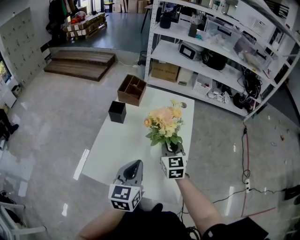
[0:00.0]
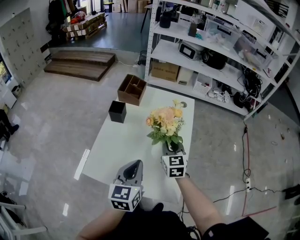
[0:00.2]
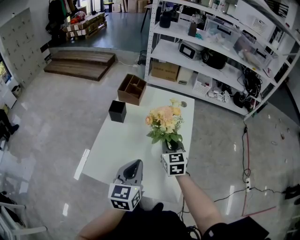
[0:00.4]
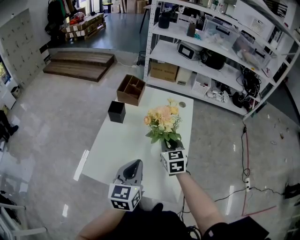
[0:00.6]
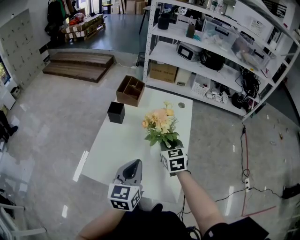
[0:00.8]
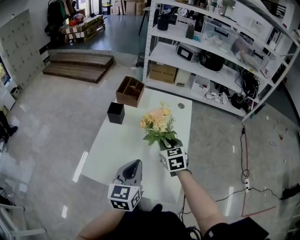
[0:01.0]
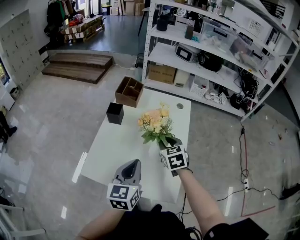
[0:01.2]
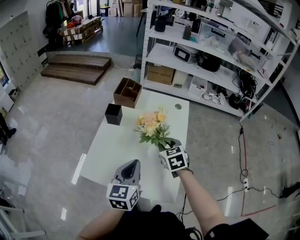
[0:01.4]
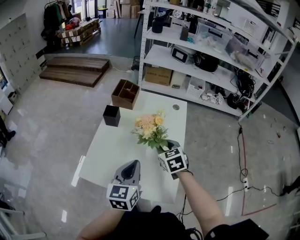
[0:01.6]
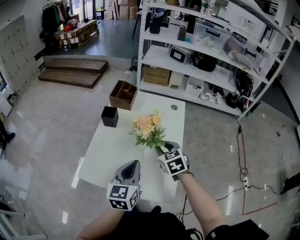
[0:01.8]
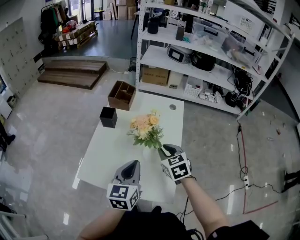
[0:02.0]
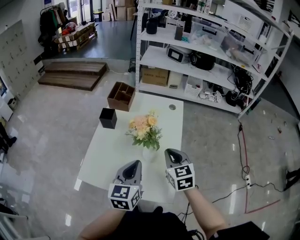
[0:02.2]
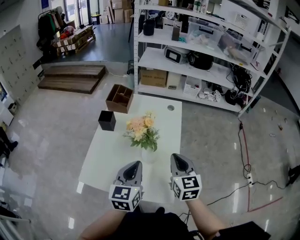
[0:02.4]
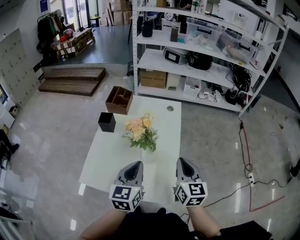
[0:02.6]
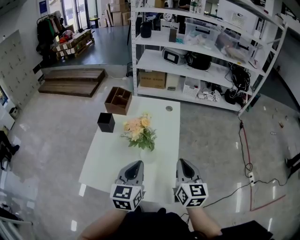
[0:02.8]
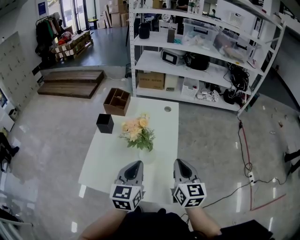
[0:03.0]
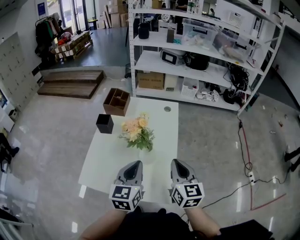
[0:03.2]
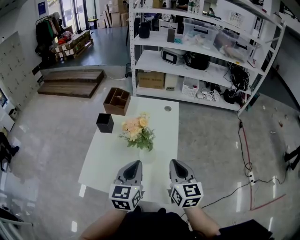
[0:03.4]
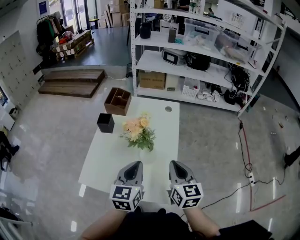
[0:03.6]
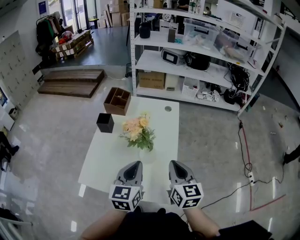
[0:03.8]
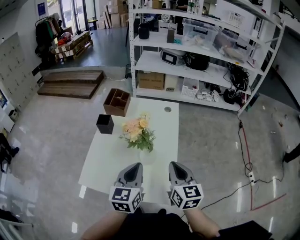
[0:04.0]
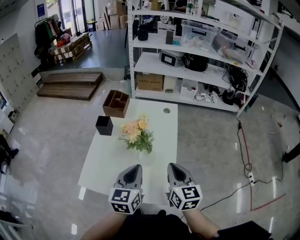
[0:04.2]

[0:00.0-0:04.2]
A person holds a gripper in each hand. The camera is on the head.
0:00.0 to 0:01.4: The right gripper changes its angle by approximately 20 degrees.
0:01.4 to 0:02.8: The right gripper heads to the right, backward and upward, covering some 20 cm, swivels roughly 40 degrees, and closes its fingers. The left gripper shifts about 5 cm to the right.
0:02.8 to 0:04.2: The grippers make only small movements.

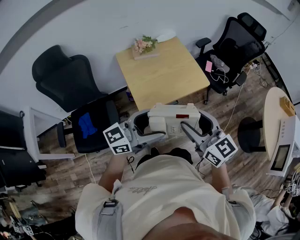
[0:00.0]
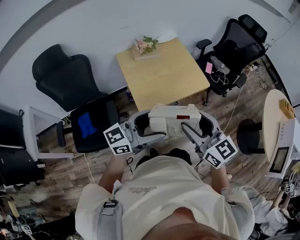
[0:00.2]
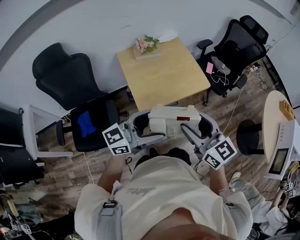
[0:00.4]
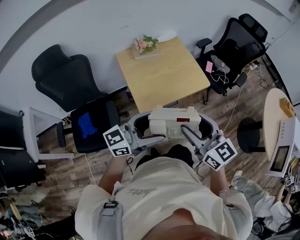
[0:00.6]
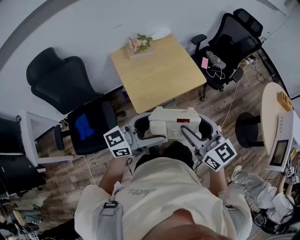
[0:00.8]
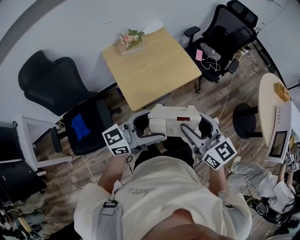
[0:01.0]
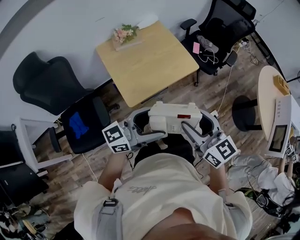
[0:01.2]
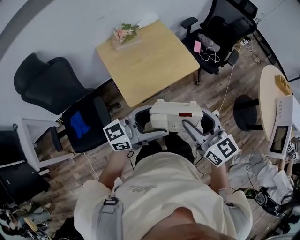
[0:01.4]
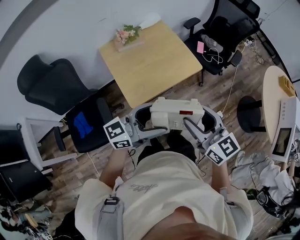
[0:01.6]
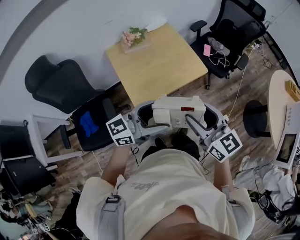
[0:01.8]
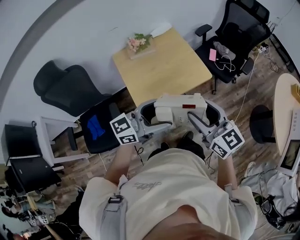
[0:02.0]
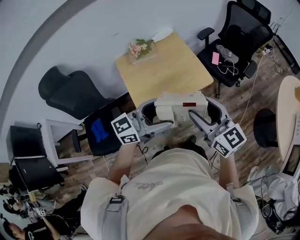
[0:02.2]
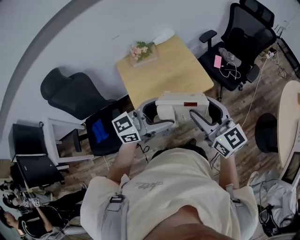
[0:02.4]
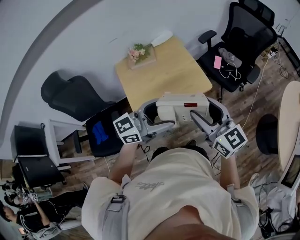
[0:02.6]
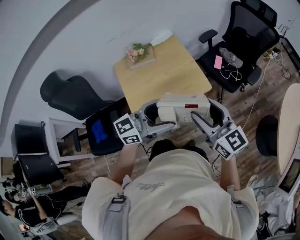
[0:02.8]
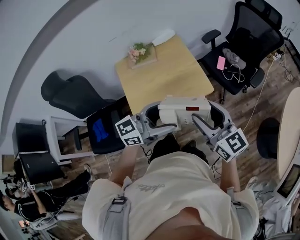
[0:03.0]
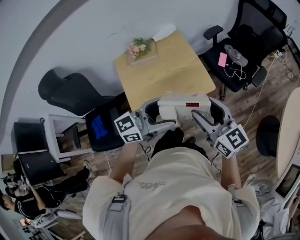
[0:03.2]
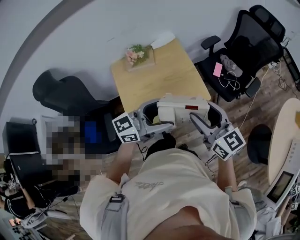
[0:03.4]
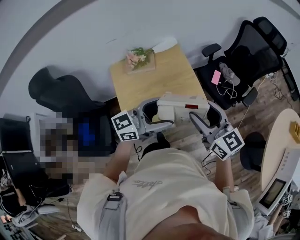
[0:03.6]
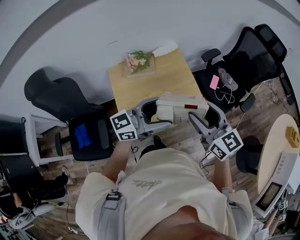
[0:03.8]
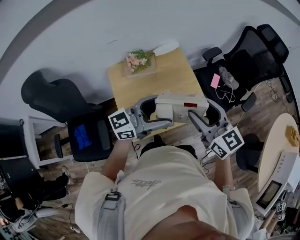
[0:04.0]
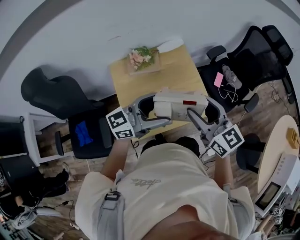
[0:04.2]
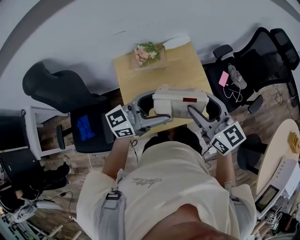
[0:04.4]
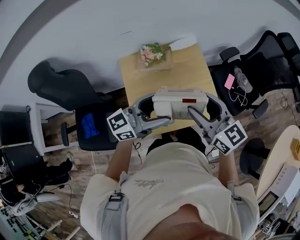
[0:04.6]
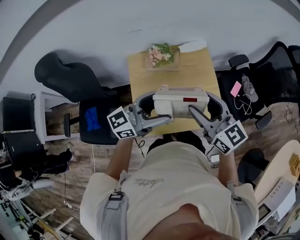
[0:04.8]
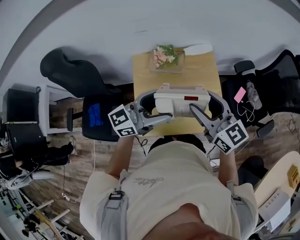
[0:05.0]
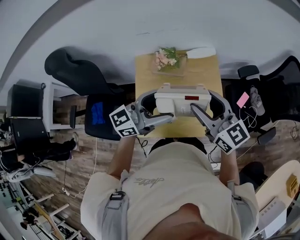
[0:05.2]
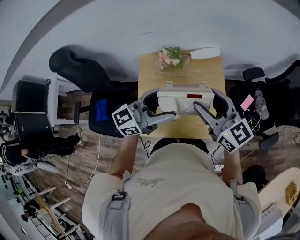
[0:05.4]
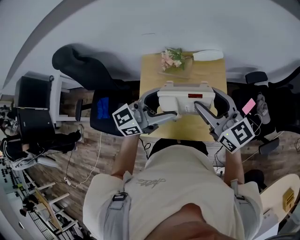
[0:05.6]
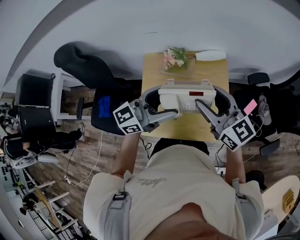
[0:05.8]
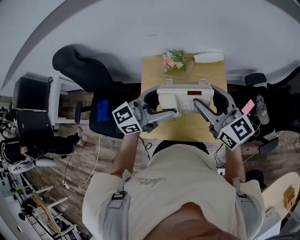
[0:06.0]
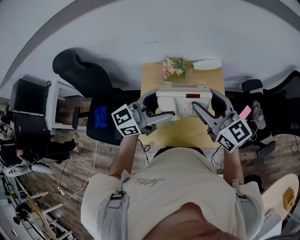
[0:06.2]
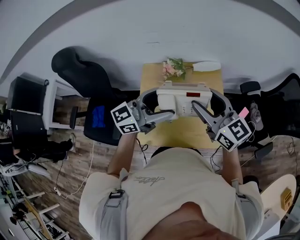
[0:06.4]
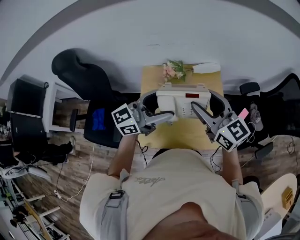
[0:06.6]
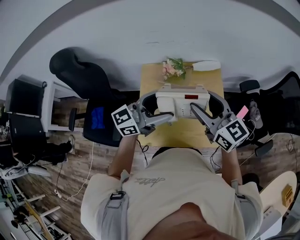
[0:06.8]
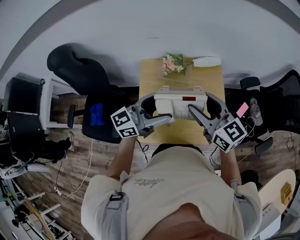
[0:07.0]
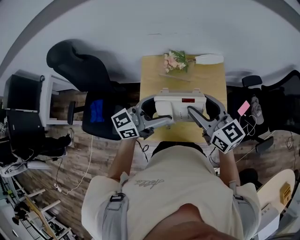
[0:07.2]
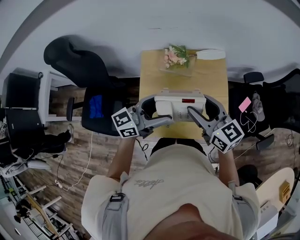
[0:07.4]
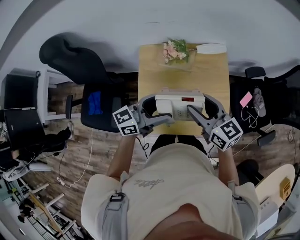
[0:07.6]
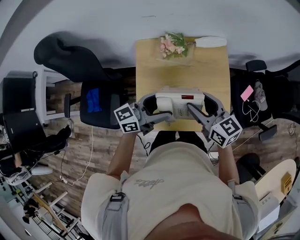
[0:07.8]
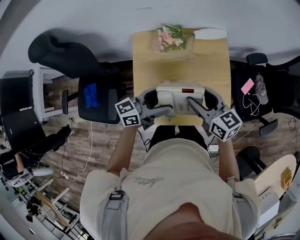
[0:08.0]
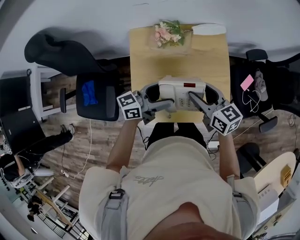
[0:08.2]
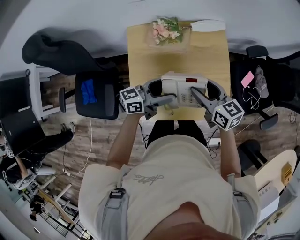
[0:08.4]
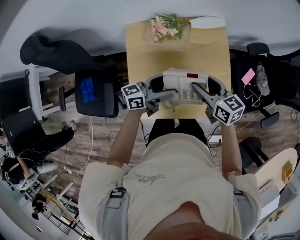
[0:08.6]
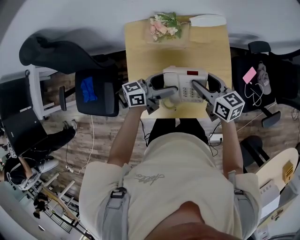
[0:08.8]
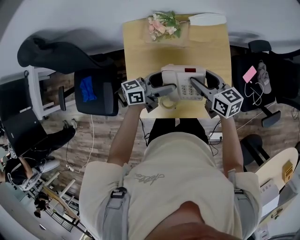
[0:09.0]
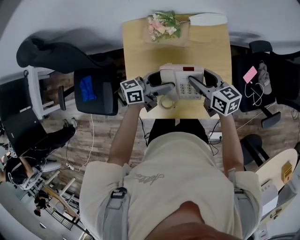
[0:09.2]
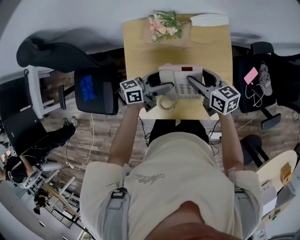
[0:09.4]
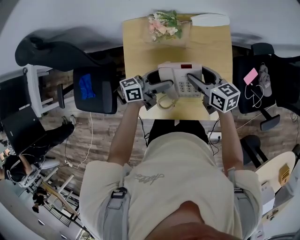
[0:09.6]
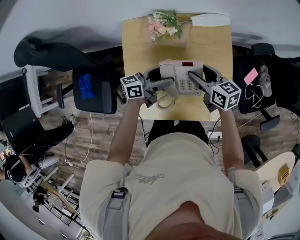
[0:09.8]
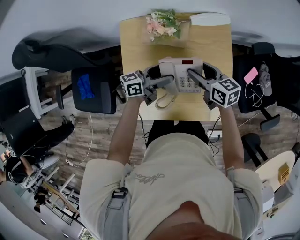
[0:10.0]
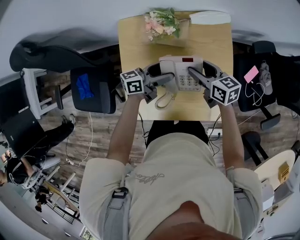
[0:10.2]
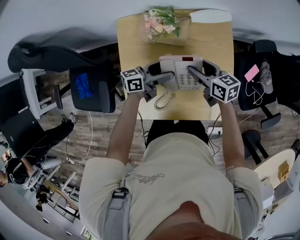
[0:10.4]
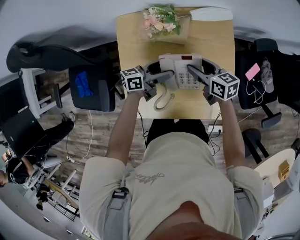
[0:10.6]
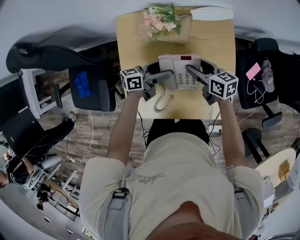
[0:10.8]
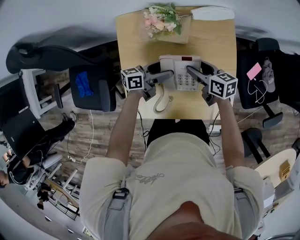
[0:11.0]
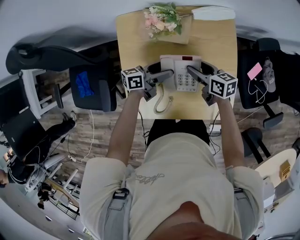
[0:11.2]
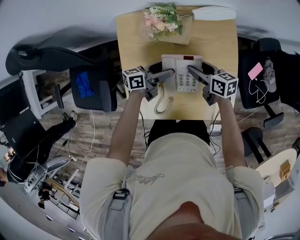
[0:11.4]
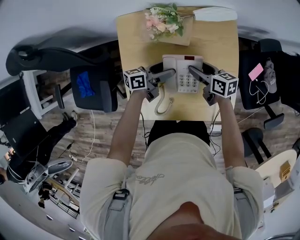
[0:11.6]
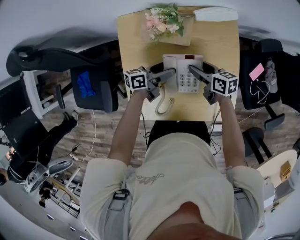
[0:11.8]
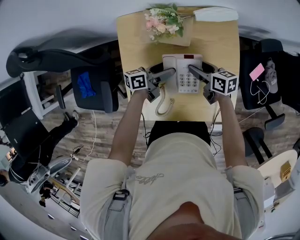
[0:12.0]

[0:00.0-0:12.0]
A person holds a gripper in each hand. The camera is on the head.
0:00.0 to 0:01.6: The left gripper ends up roughly 5 cm from where it was. The right gripper goes approximately 5 cm to the right.
0:01.6 to 0:03.0: Both grippers move forward and to the right, approximately 20 cm.
0:03.0 to 0:04.4: The two grippers go about 25 cm to the left and forward.
0:04.4 to 0:06.0: Both grippers move forward, about 10 cm. The right gripper changes its angle by approximately 20 degrees, while the left gripper swivels some 20 degrees.
0:06.0 to 0:07.6: Both grippers travel together downward and to the left, approximately 10 cm.
0:07.6 to 0:09.0: Both grippers move downward and forward, roughly 15 cm.
0:09.0 to 0:10.4: Both grippers move downward and forward, approximately 10 cm.
0:10.4 to 0:12.0: Both grippers move downward, some 5 cm.

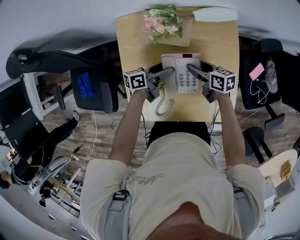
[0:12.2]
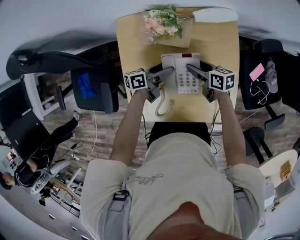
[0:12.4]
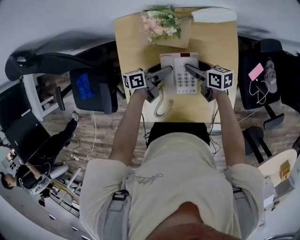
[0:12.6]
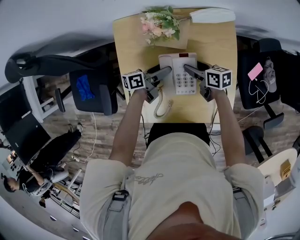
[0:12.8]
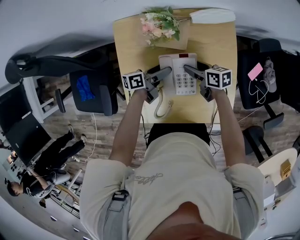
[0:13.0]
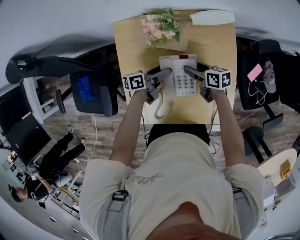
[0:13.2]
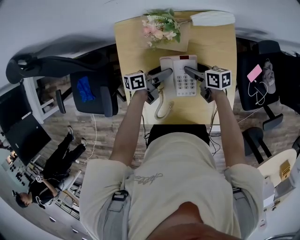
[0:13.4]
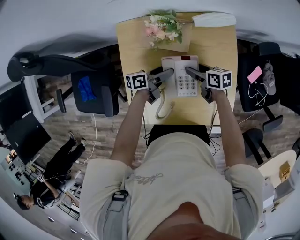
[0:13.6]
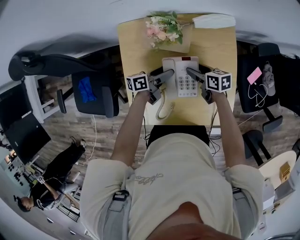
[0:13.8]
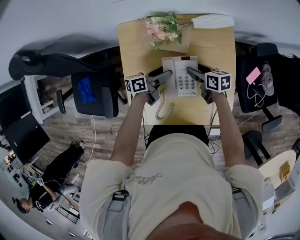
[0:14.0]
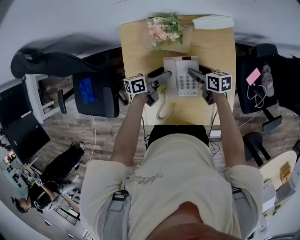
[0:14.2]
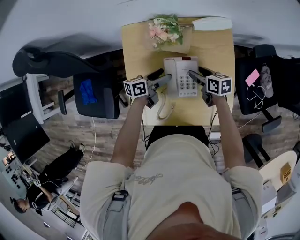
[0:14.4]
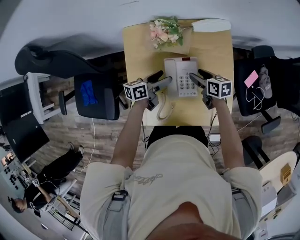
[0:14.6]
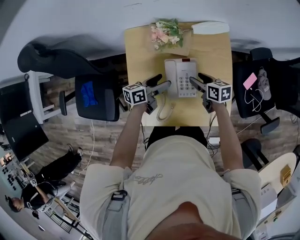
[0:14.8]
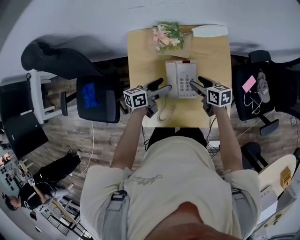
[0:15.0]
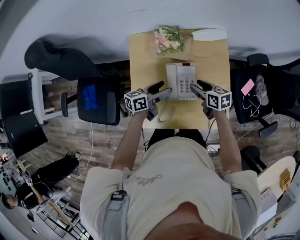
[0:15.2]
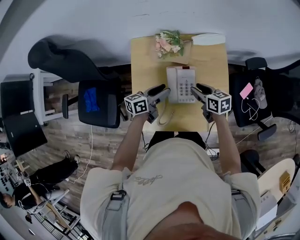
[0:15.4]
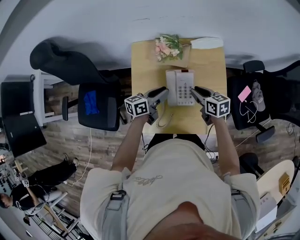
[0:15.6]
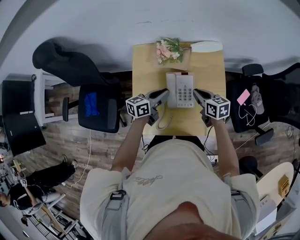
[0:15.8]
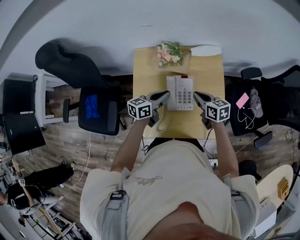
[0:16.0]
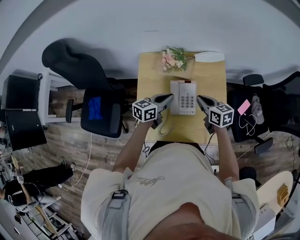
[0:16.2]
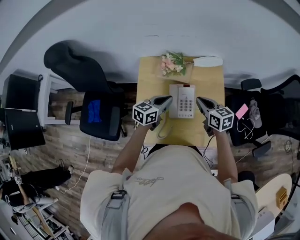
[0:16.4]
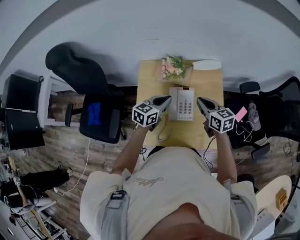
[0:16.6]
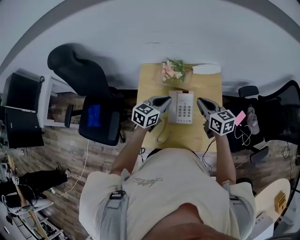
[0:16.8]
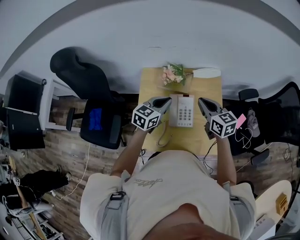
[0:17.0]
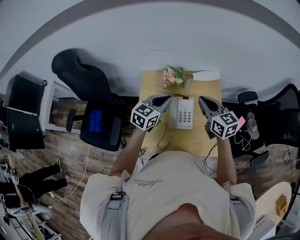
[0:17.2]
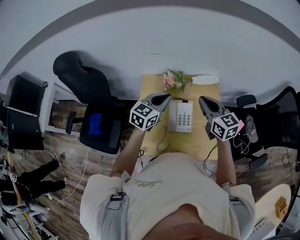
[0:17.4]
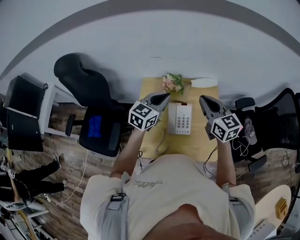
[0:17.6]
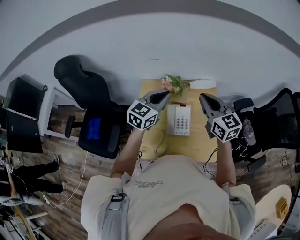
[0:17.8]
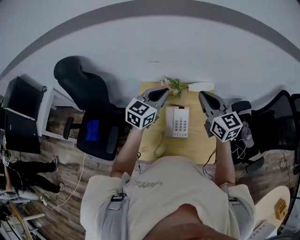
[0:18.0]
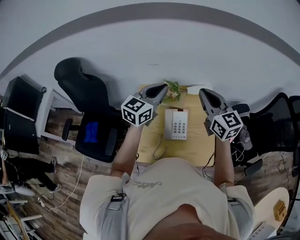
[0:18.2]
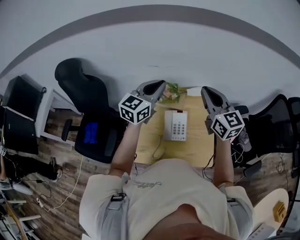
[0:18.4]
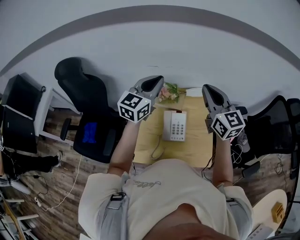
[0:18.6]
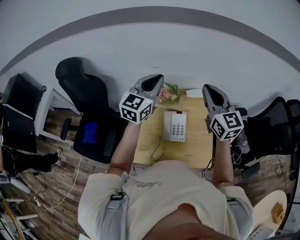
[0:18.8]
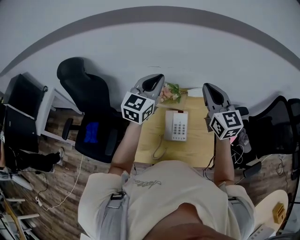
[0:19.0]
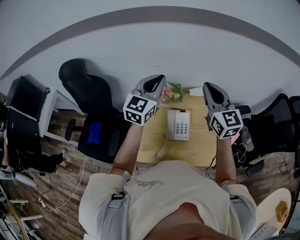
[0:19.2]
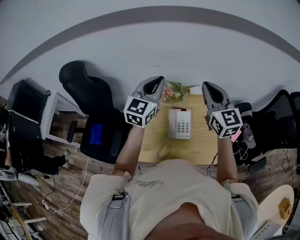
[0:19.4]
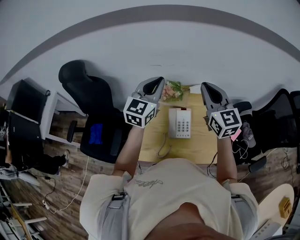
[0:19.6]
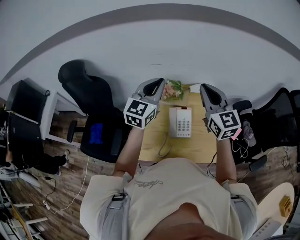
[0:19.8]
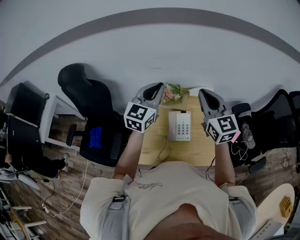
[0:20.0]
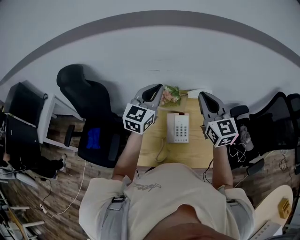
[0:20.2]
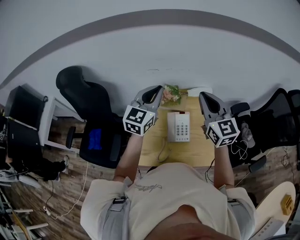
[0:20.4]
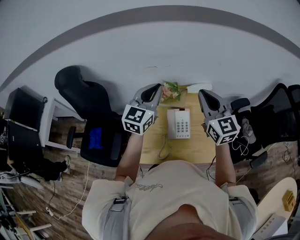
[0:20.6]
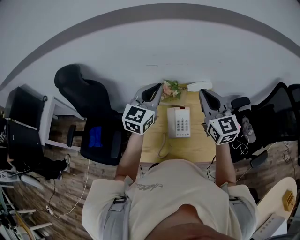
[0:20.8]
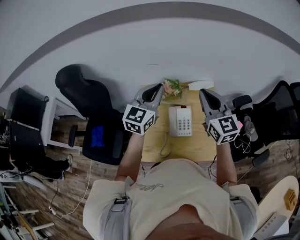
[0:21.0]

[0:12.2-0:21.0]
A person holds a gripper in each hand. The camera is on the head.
0:12.2 to 0:13.6: There are only small adjustments of the grippers.
0:13.6 to 0:15.2: The two grippers go roughly 10 cm upward and backward. The left gripper turns by roughly 20 degrees.
0:15.2 to 0:16.6: Both grippers travel together upward, about 10 cm. The right gripper closes. The left gripper swivels approximately 30 degrees, and closes its fingers.
0:16.6 to 0:18.0: The two grippers go about 20 cm upward. The left gripper changes its angle by approximately 20 degrees, while the right gripper changes its angle by some 30 degrees.
0:18.0 to 0:19.6: Both grippers travel together upward, approximately 5 cm.
0:19.6 to 0:21.0: There are only small adjustments of the grippers.
